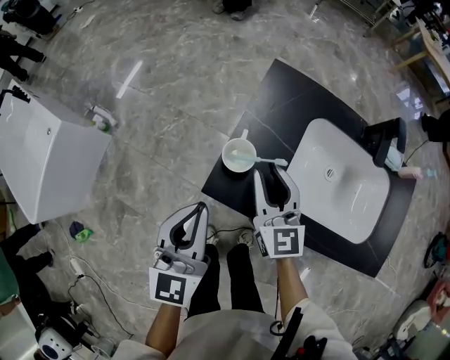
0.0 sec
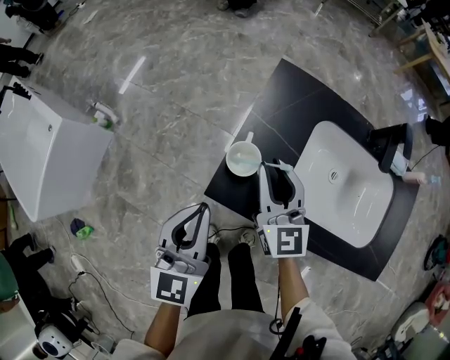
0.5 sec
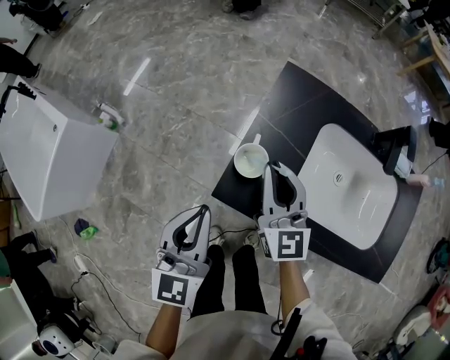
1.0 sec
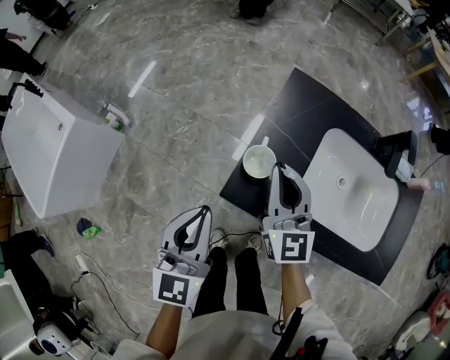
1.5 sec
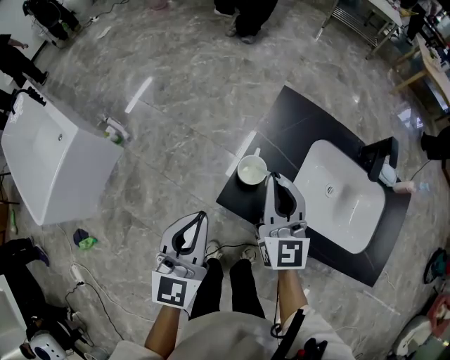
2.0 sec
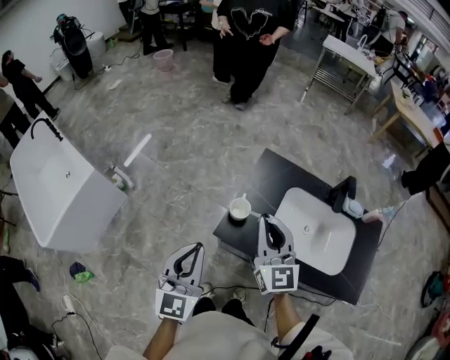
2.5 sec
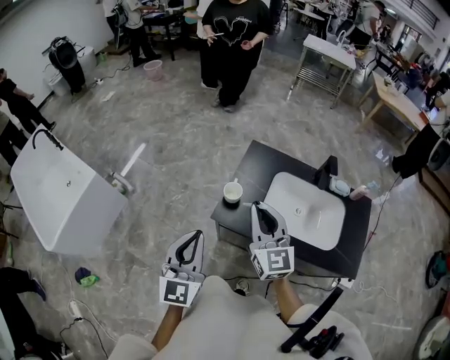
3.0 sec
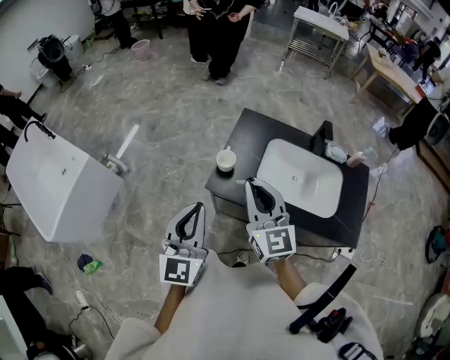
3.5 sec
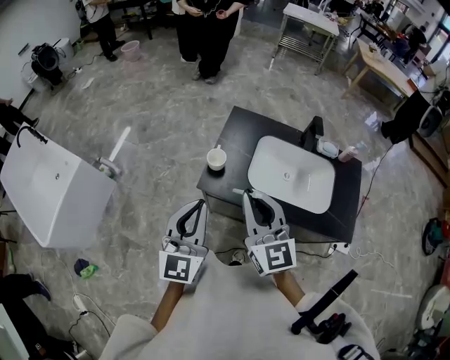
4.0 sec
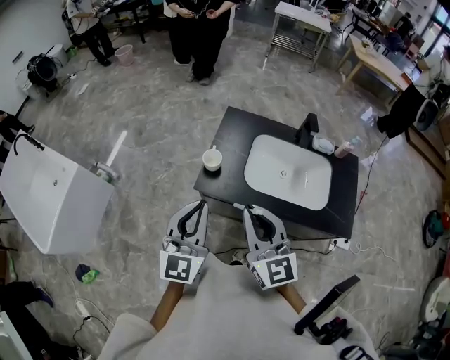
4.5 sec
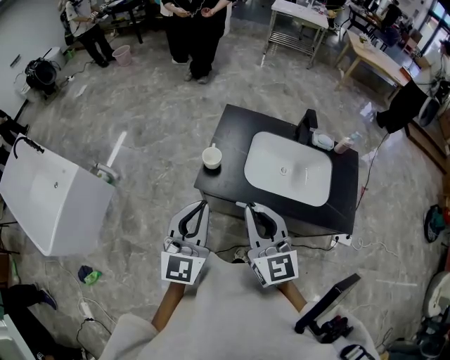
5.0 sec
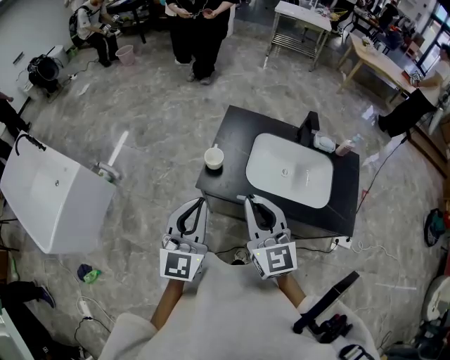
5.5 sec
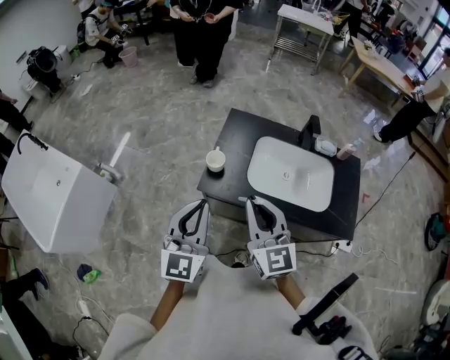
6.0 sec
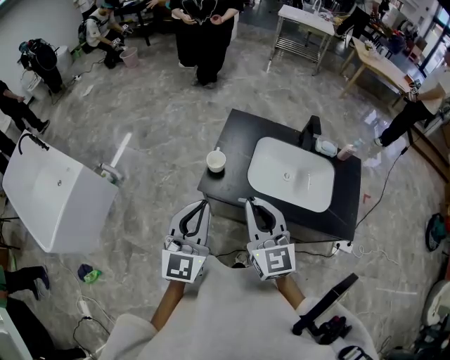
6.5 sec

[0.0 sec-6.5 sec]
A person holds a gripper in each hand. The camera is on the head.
0.0 sec to 2.0 sec: The right gripper travels upward by some 5 cm.
2.0 sec to 4.5 sec: The left gripper is displaced upward, backward and to the right by some 15 cm. The right gripper heads backward and upward, covering approximately 25 cm.
4.5 sec to 6.5 sec: There are only small adjustments of the grippers.

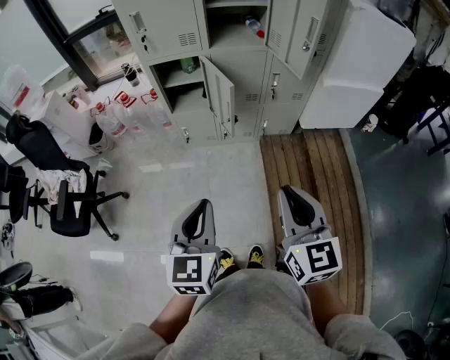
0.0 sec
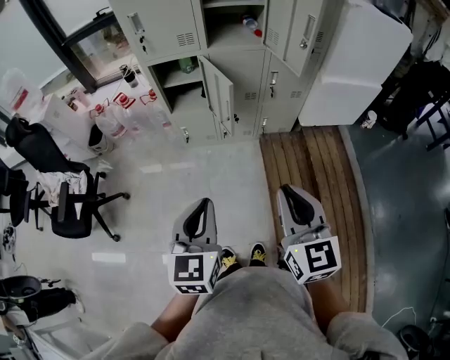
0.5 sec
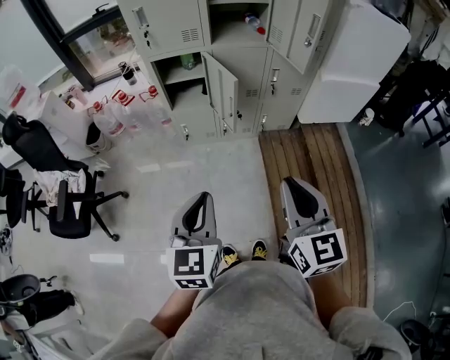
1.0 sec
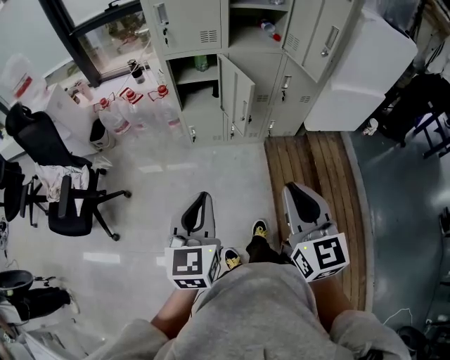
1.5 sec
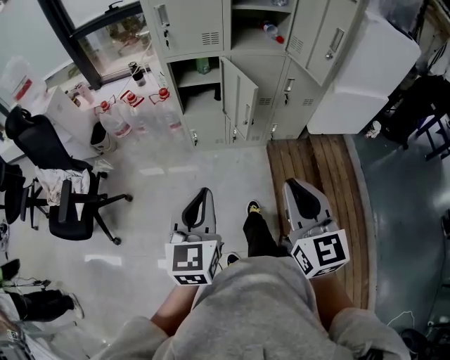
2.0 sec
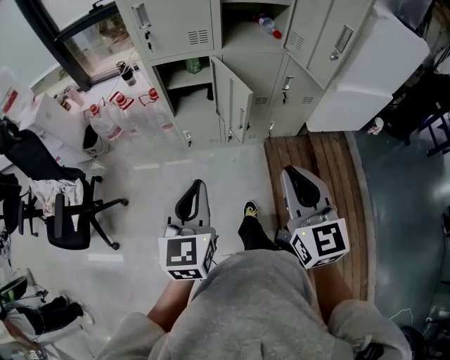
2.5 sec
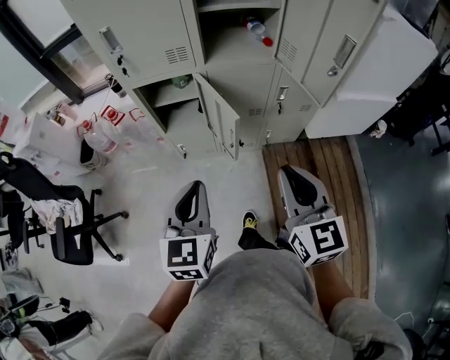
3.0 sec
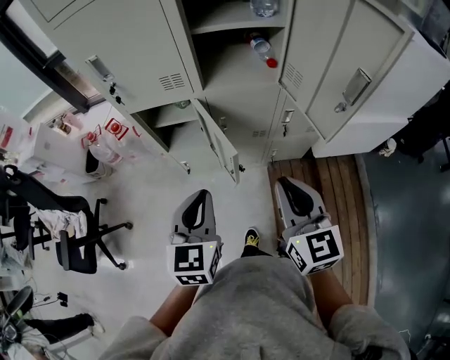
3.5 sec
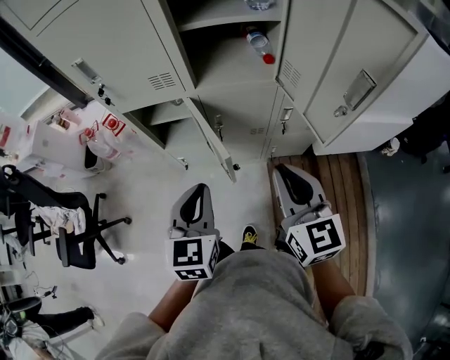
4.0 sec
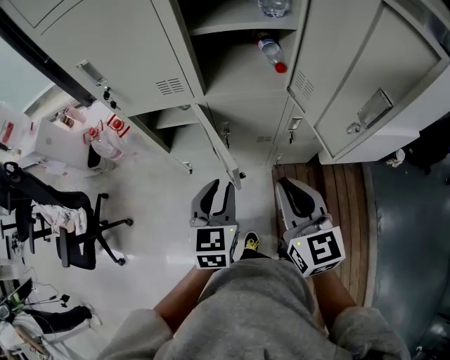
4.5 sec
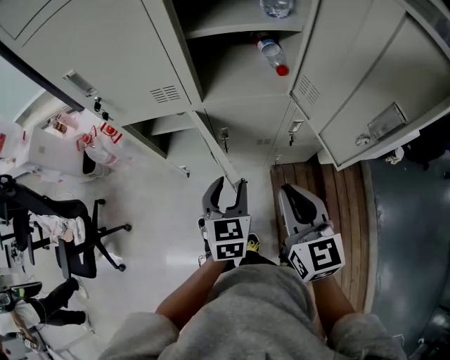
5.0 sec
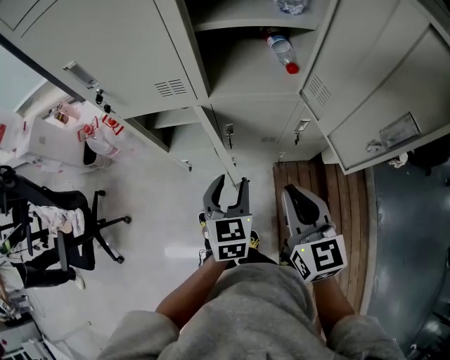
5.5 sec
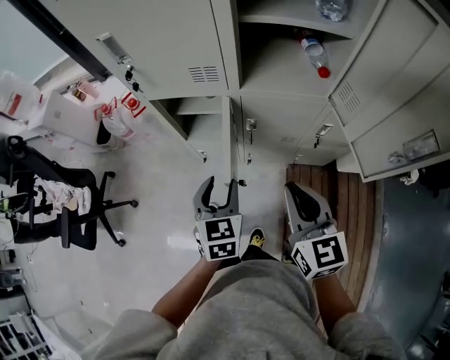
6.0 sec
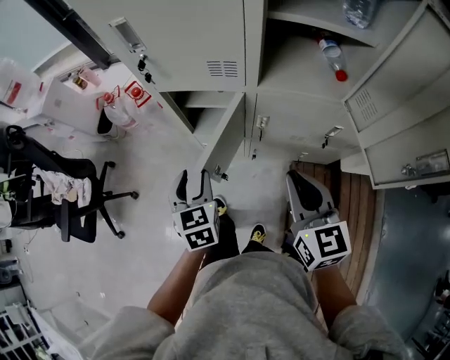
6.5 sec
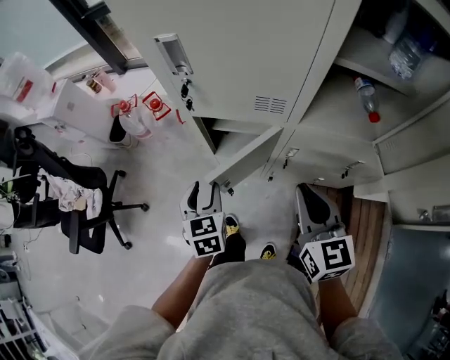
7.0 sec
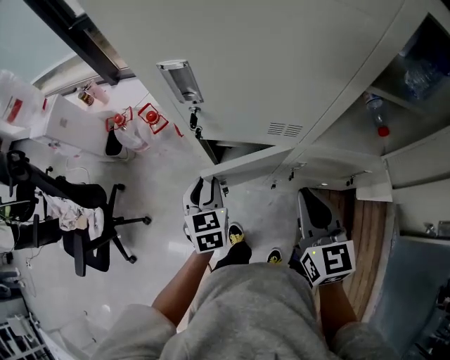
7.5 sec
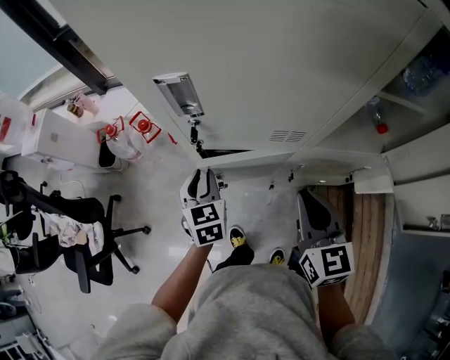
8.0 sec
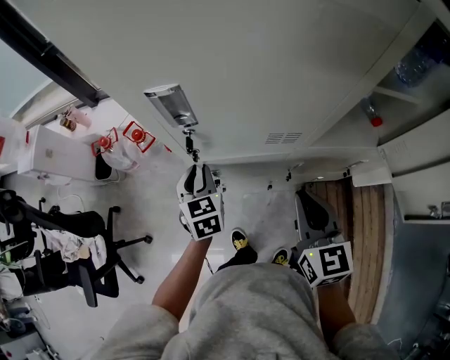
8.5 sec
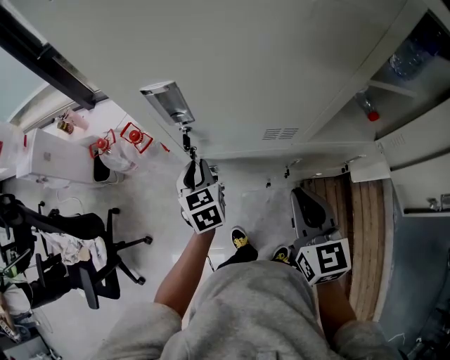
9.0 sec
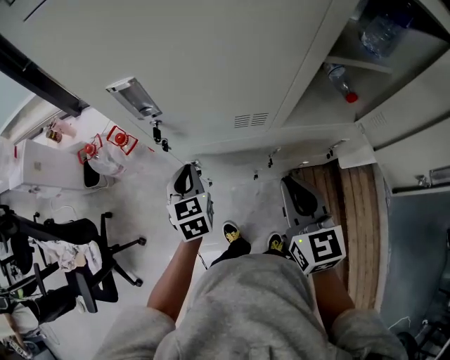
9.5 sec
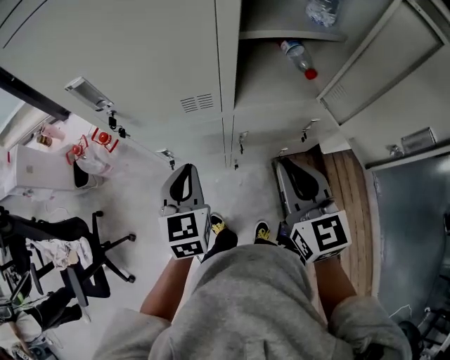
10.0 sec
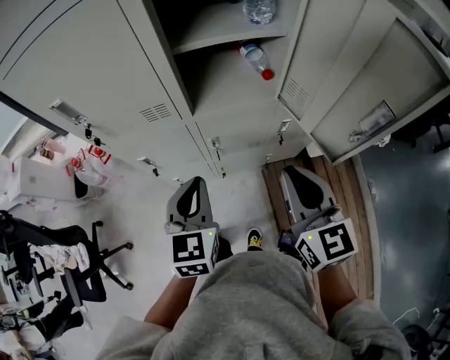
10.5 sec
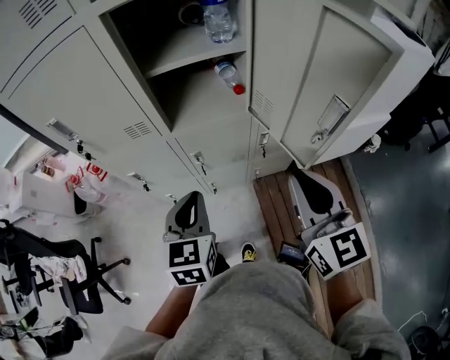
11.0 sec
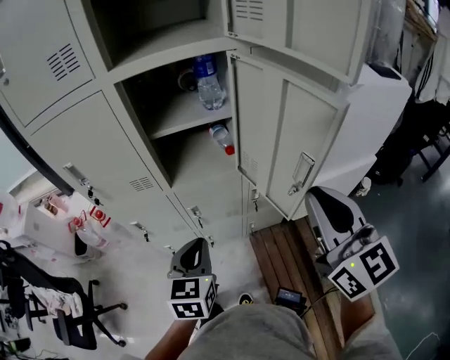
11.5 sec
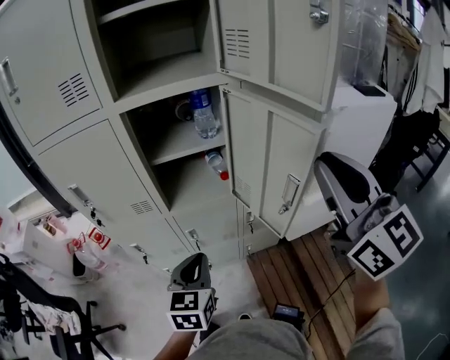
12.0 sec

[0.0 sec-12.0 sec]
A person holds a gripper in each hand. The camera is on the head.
0.0 sec to 2.0 sec: The grippers both shift to the left by about 10 cm.
2.0 sec to 4.0 sec: The right gripper moves forward, about 35 cm. Meanwhile the left gripper is displaced forward and to the right by roughly 35 cm.
4.0 sec to 6.0 sec: The left gripper shifts roughly 10 cm downward and forward, and opens. Meanwhile the right gripper shifts approximately 5 cm to the left.
6.0 sec to 8.0 sec: Both grippers move forward and to the left, about 25 cm. The left gripper closes up.
8.0 sec to 10.0 sec: The right gripper is displaced to the right and backward by roughly 10 cm, while the left gripper is displaced to the right, backward and upward by roughly 20 cm.
10.0 sec to 12.0 sec: The right gripper travels upward and to the right by roughly 40 cm, and swivels some 30 degrees. The left gripper is displaced to the right, upward and backward by some 25 cm.

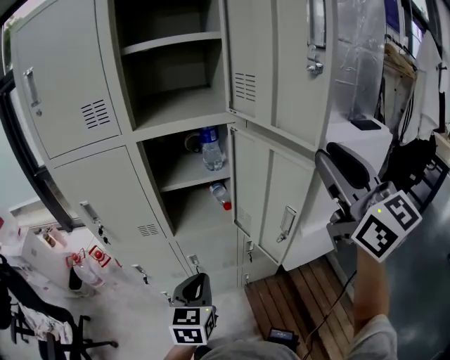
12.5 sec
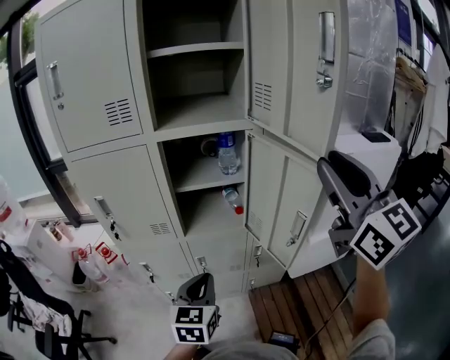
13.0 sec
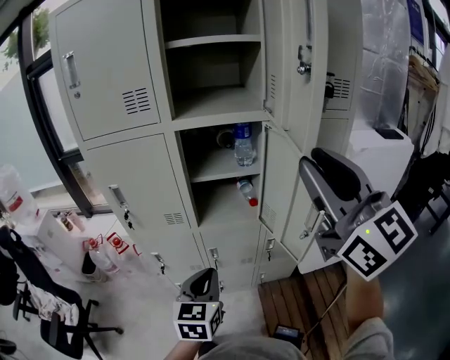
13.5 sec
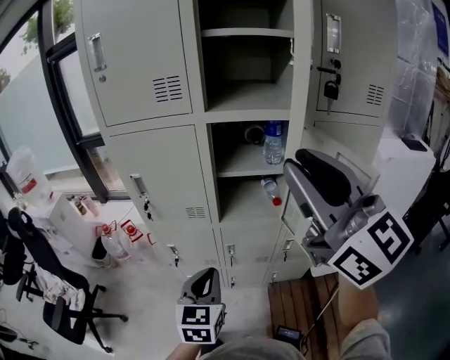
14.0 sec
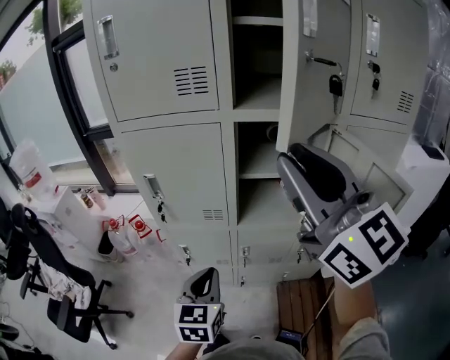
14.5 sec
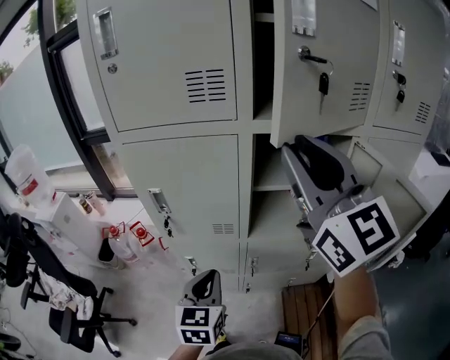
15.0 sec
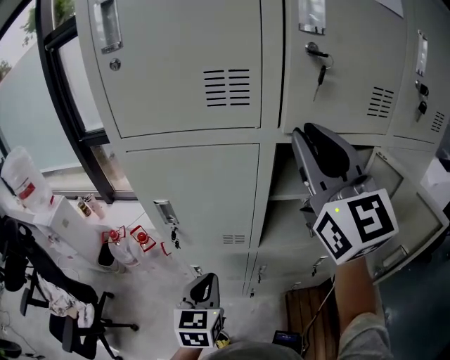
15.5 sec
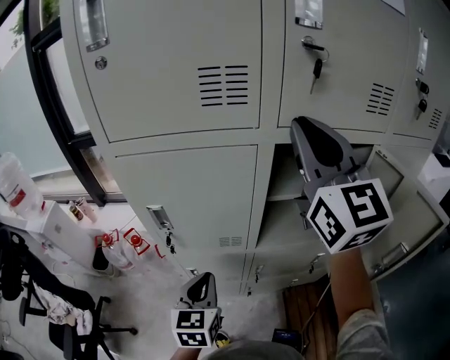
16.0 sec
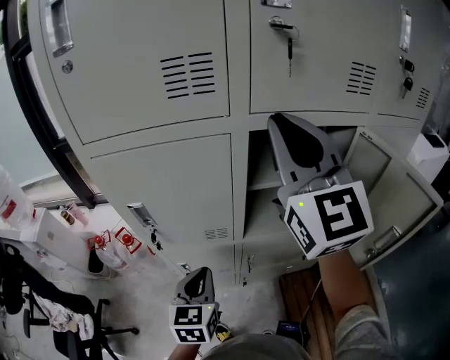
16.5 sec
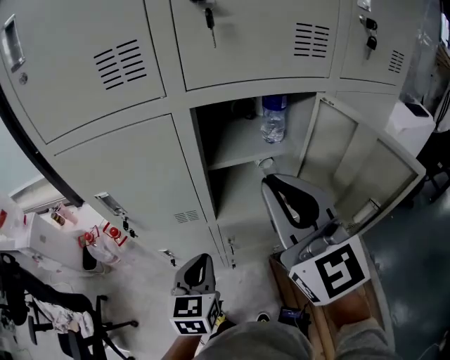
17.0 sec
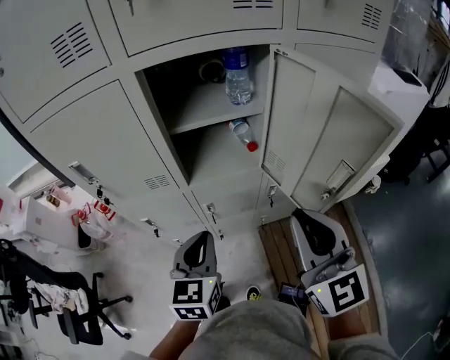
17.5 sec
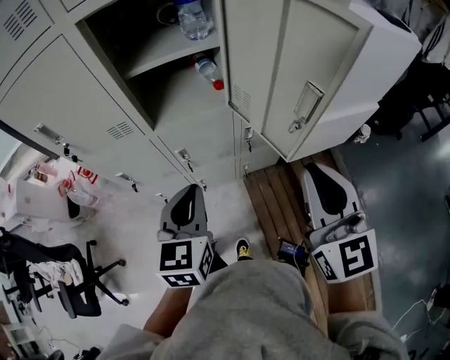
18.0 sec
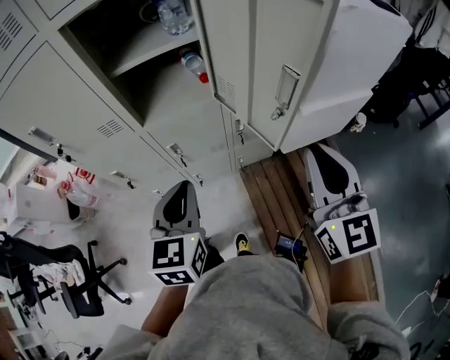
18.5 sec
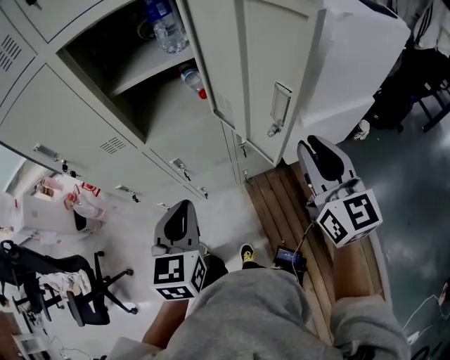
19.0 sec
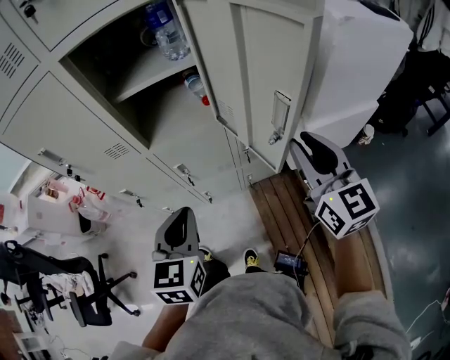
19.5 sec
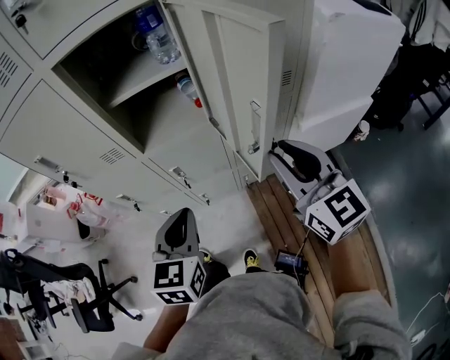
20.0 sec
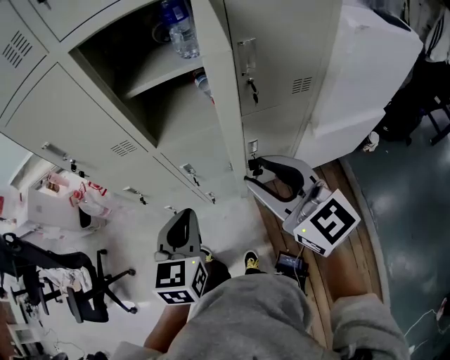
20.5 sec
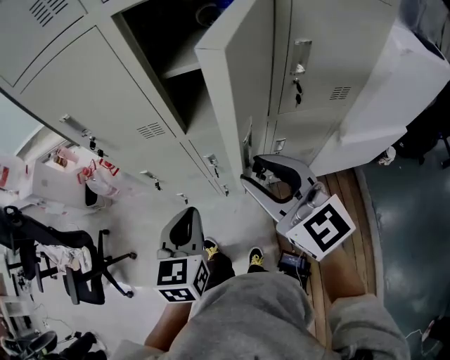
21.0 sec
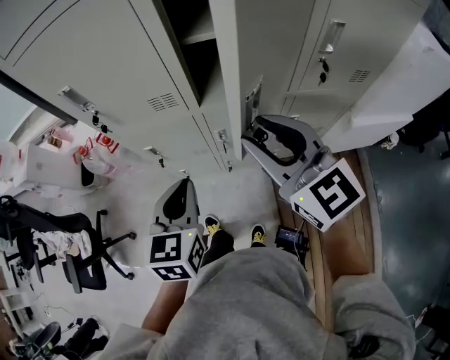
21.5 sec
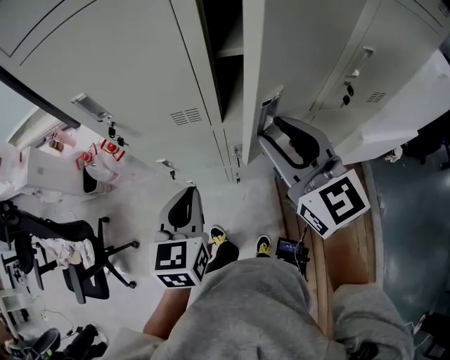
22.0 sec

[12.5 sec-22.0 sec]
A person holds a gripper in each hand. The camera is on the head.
12.5 sec to 14.5 sec: The right gripper shifts approximately 25 cm to the left, and swivels approximately 20 degrees; the left gripper moves to the left, roughly 15 cm.
14.5 sec to 16.5 sec: The two grippers go approximately 15 cm forward. The right gripper changes its angle by roughly 20 degrees.
16.5 sec to 18.0 sec: The left gripper moves to the right and backward, some 25 cm. Meanwhile the right gripper shifts approximately 50 cm to the right, downward and backward, and swivels roughly 30 degrees.
18.0 sec to 20.0 sec: The right gripper is displaced forward by some 5 cm.
20.0 sec to 22.0 sec: The two grippers go about 25 cm to the left and forward.
